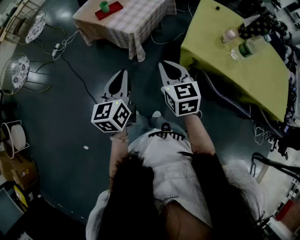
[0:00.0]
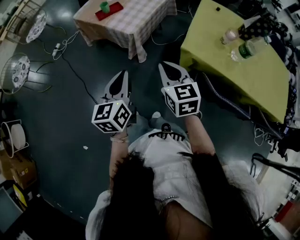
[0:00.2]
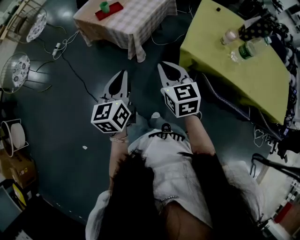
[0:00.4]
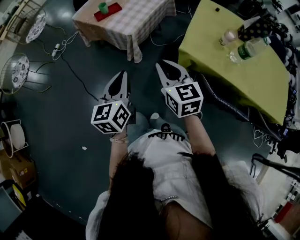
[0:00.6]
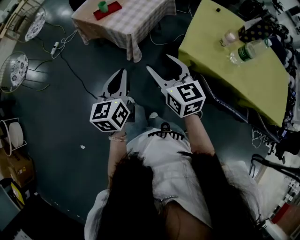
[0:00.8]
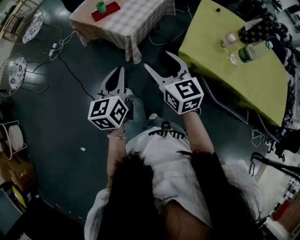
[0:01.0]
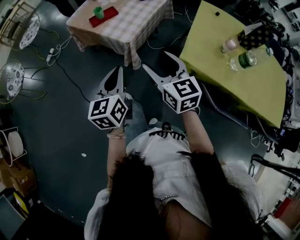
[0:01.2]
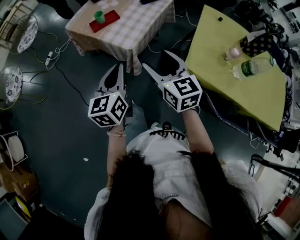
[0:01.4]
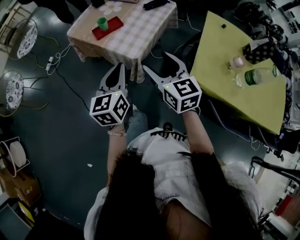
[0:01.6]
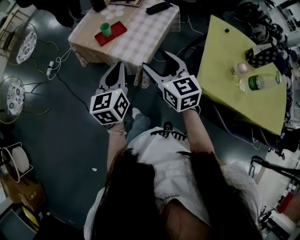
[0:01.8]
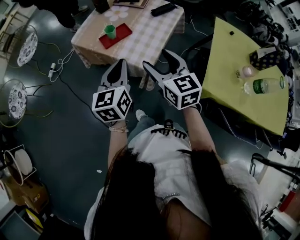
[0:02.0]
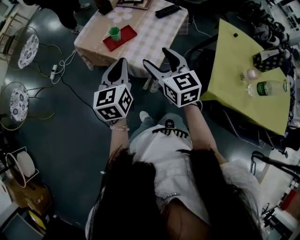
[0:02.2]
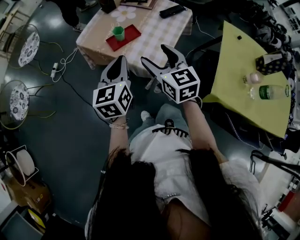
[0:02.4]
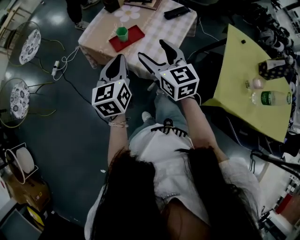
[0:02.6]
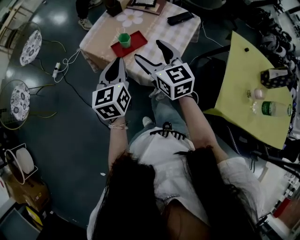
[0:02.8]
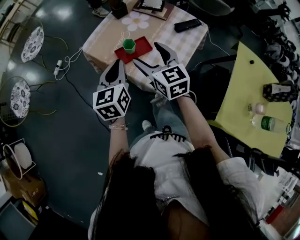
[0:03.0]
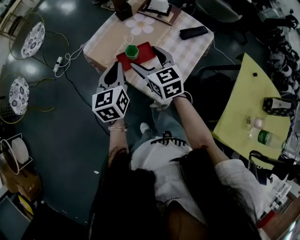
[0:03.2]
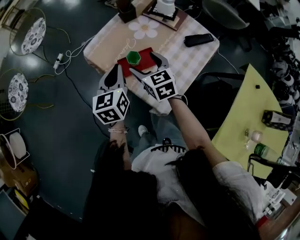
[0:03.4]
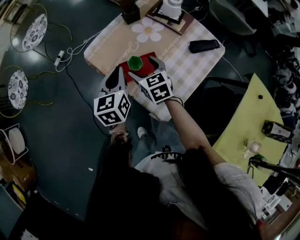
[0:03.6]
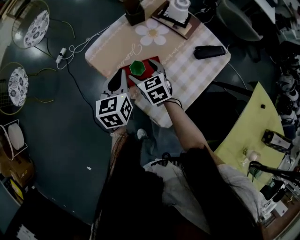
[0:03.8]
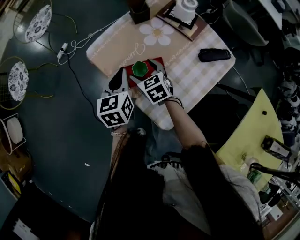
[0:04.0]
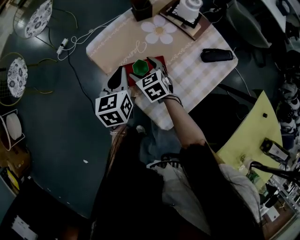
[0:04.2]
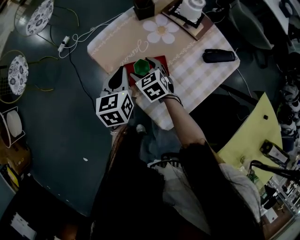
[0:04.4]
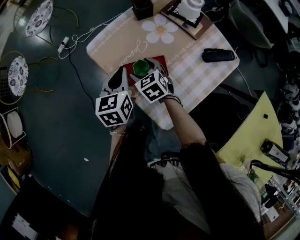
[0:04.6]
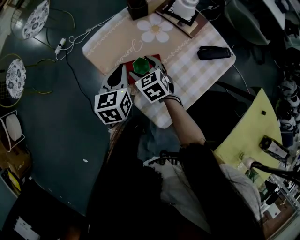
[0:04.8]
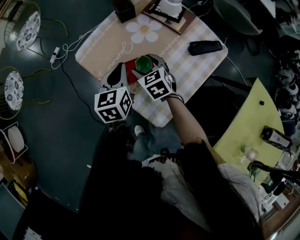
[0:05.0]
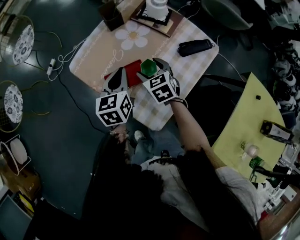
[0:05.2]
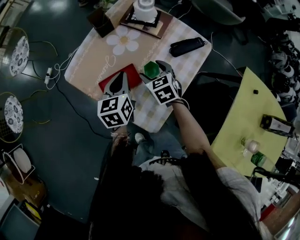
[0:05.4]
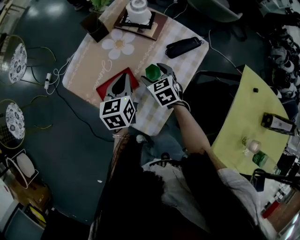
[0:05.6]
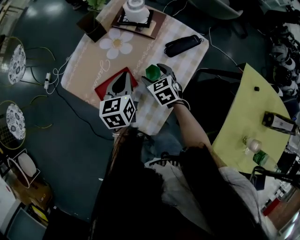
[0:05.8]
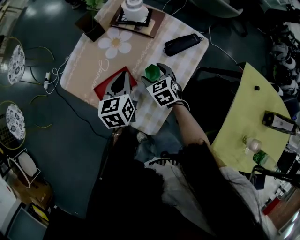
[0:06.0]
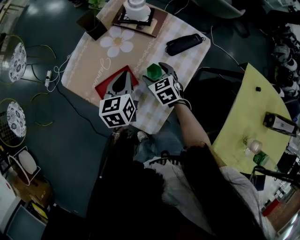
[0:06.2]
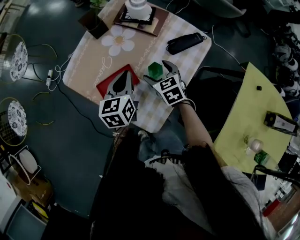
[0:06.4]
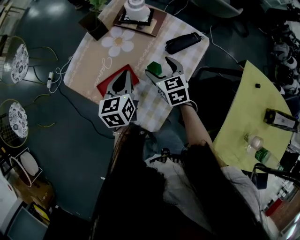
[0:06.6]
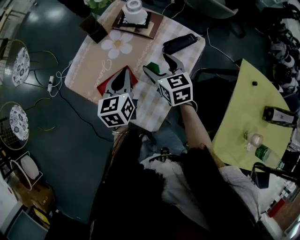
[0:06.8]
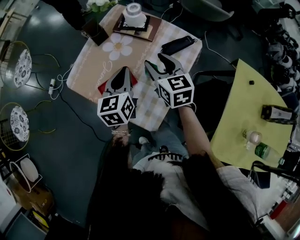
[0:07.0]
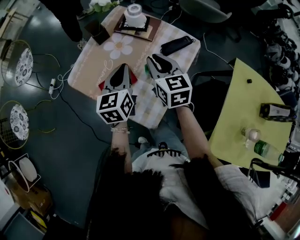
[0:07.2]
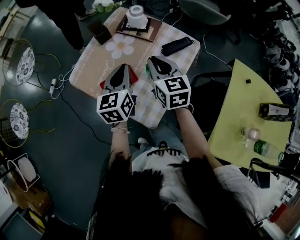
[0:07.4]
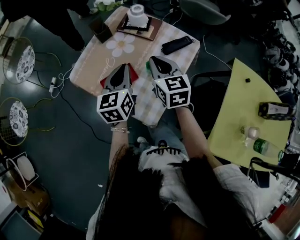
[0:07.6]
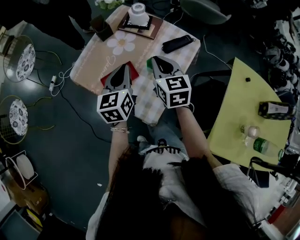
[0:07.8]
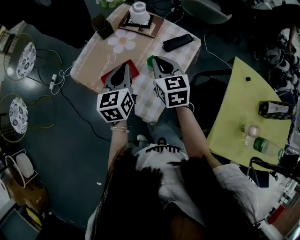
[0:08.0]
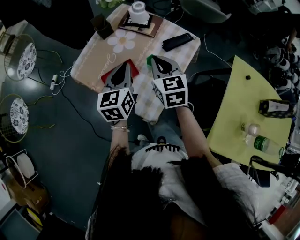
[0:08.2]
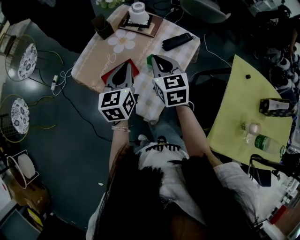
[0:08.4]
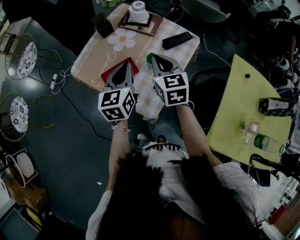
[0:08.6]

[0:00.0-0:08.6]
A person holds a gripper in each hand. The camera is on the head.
0:00.0 to 0:01.4: Both grippers travel together forward, approximately 15 cm. The right gripper opens.
0:01.4 to 0:02.8: Both grippers travel together forward and to the left, roughly 30 cm.
0:02.8 to 0:04.4: The right gripper heads downward and forward, covering roughly 30 cm, and angles its fingers downward, by roughly 30 degrees. The left gripper is displaced forward and downward by some 25 cm, and rotates about 20 degrees.
0:04.4 to 0:05.8: The two grippers go approximately 20 cm to the right. The right gripper rotates some 20 degrees.
0:05.8 to 0:07.2: The right gripper heads upward, covering roughly 20 cm, swivels some 30 degrees, and closes. Meanwhile the left gripper is displaced upward by approximately 10 cm.
0:07.2 to 0:08.6: Both grippers move backward, some 5 cm.

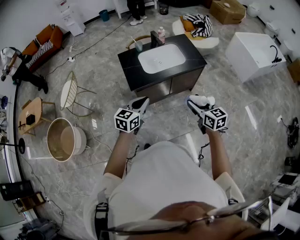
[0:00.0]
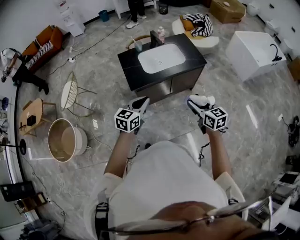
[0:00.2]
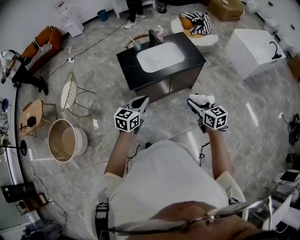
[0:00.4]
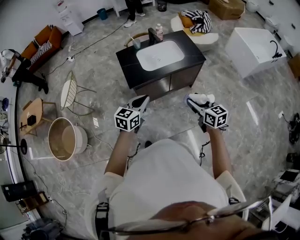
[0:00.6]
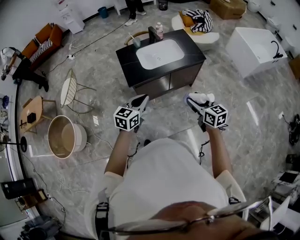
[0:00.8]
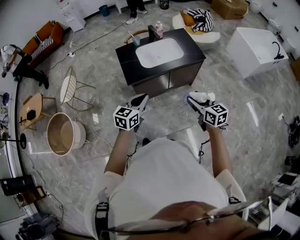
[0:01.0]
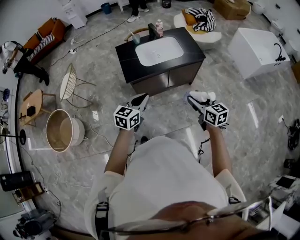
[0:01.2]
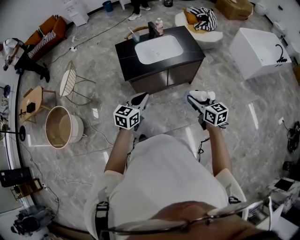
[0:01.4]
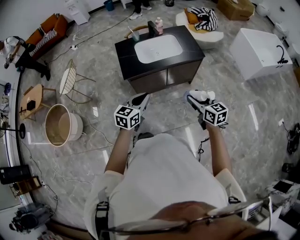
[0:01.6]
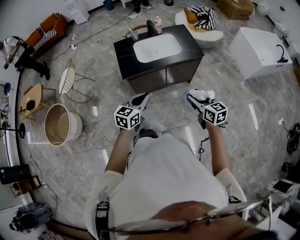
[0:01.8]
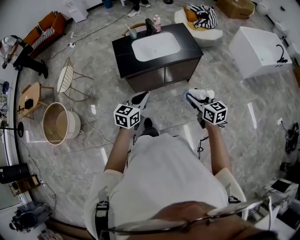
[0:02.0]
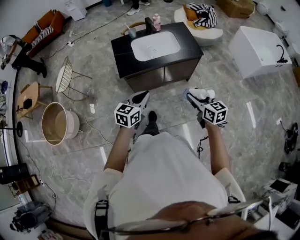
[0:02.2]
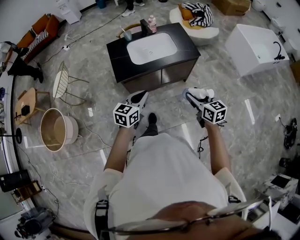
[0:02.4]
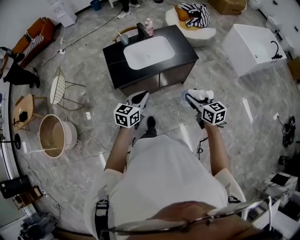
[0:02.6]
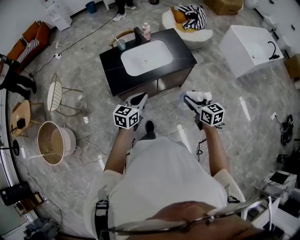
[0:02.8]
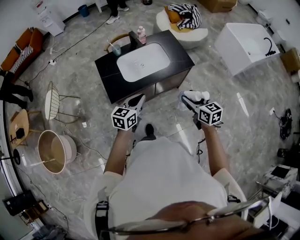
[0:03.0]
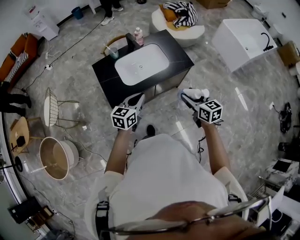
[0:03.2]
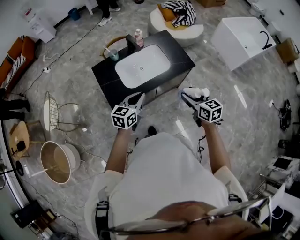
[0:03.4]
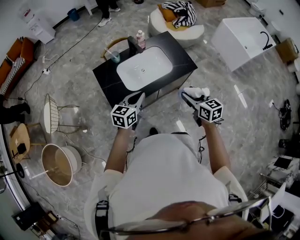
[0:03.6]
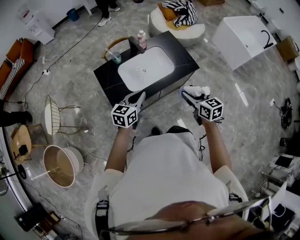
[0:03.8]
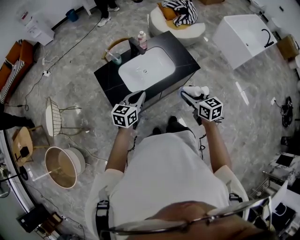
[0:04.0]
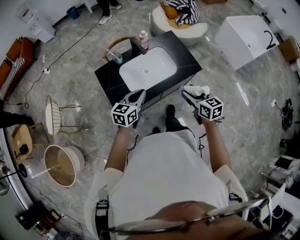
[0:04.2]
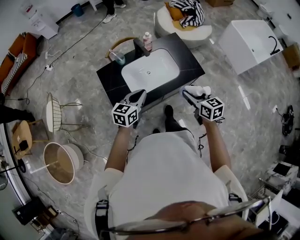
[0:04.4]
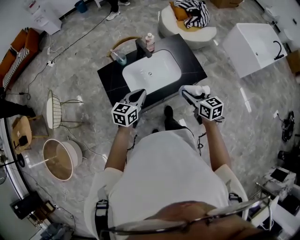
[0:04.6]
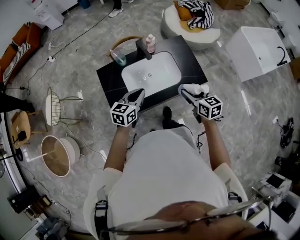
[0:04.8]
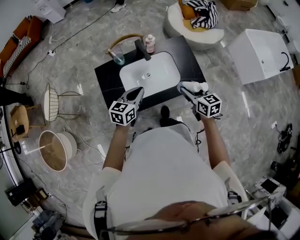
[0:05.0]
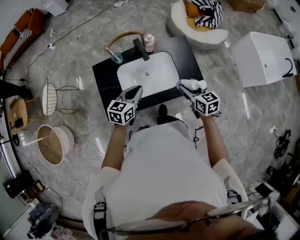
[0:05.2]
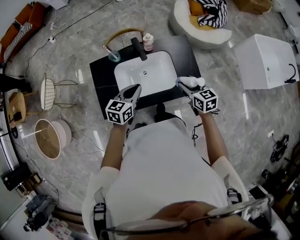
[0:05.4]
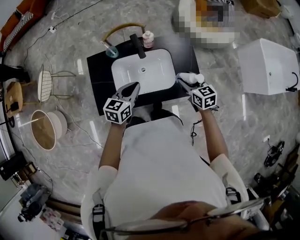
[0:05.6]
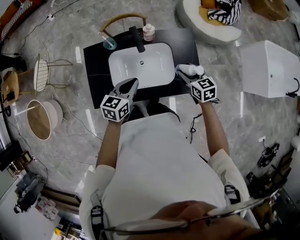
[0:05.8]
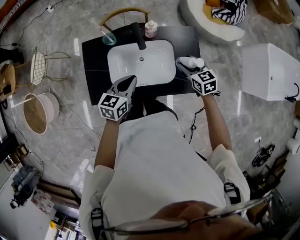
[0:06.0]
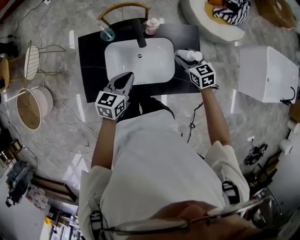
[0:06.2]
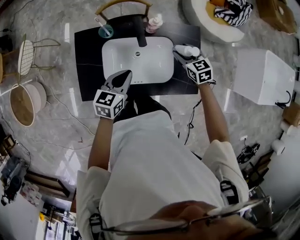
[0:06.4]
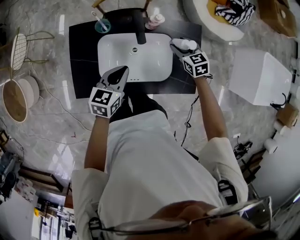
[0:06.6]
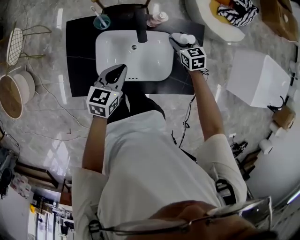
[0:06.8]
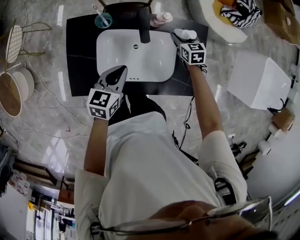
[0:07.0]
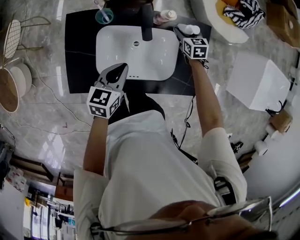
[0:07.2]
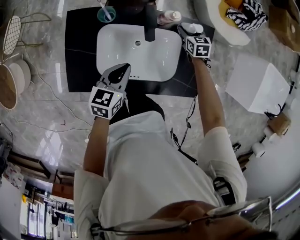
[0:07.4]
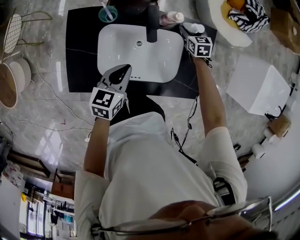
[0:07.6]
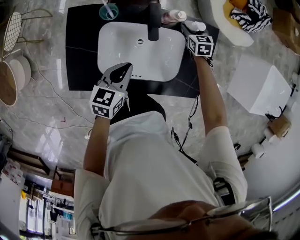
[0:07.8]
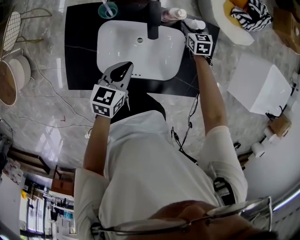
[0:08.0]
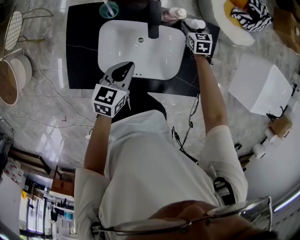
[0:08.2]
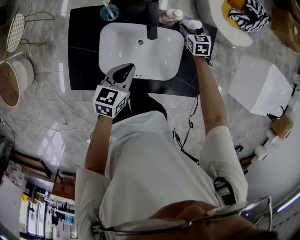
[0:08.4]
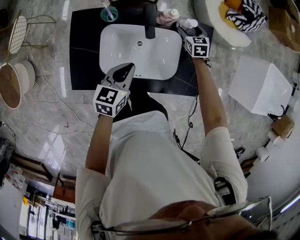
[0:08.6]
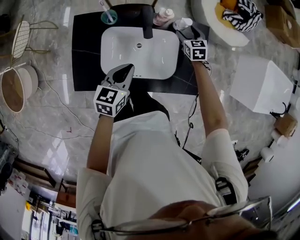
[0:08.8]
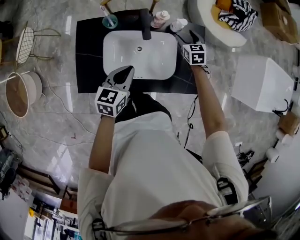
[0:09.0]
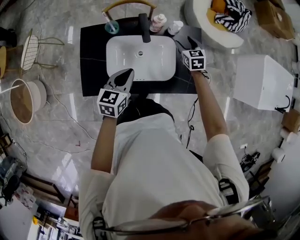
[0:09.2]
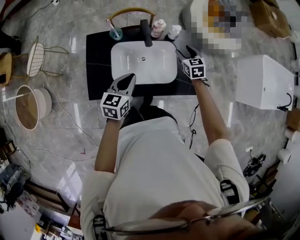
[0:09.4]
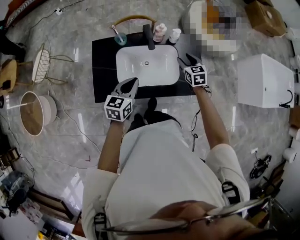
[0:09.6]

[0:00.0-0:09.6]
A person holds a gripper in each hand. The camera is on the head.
0:00.0 to 0:01.6: The grippers both shift to the right by about 10 cm.
0:01.6 to 0:03.2: Both grippers move forward, about 20 cm.
0:03.2 to 0:04.8: Both grippers travel together forward, approximately 20 cm.
0:04.8 to 0:06.4: The left gripper is displaced forward and downward by some 15 cm, and rotates some 20 degrees, while the right gripper shifts some 35 cm forward and downward, and swivels approximately 30 degrees.
0:06.4 to 0:08.0: The left gripper heads downward, covering roughly 10 cm; the right gripper travels downward and forward by some 20 cm.
0:08.0 to 0:09.6: The right gripper heads backward and upward, covering roughly 25 cm. Meanwhile the left gripper heads upward and backward, covering approximately 15 cm.

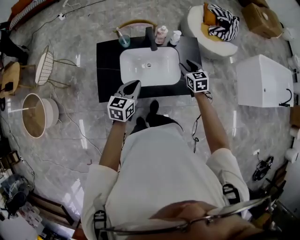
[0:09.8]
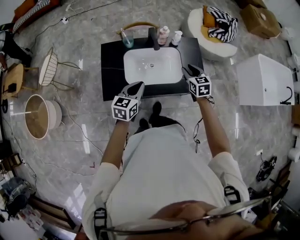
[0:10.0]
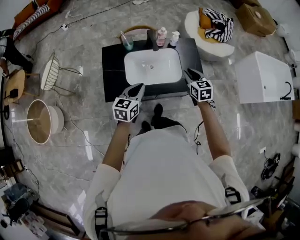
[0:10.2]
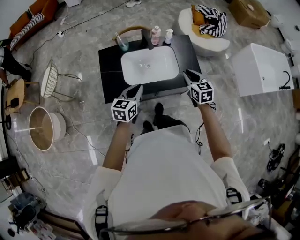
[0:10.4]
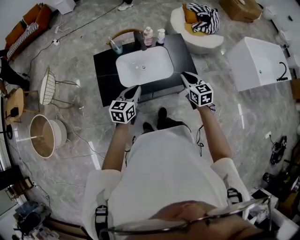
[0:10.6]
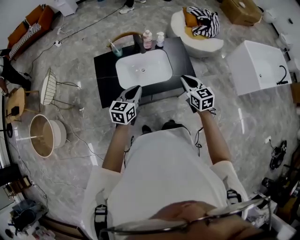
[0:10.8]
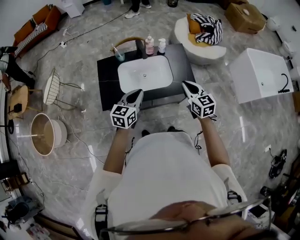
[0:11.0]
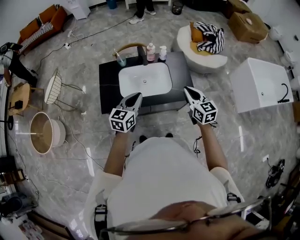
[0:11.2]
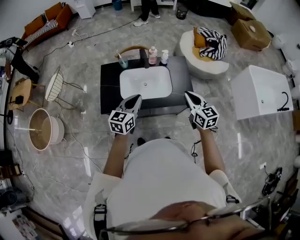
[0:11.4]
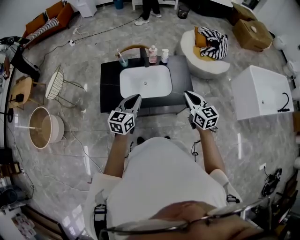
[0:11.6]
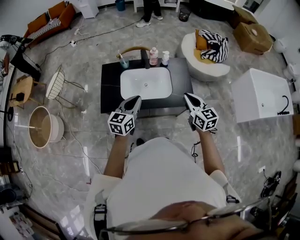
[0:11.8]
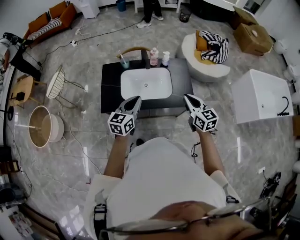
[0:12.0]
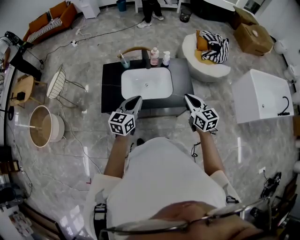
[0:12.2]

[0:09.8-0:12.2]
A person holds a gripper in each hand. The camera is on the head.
0:09.8 to 0:11.0: The right gripper moves backward and upward, roughly 20 cm, and closes its fingers, while the left gripper heads backward, upward and to the right, covering roughly 10 cm.
0:11.0 to 0:12.2: The grippers move only a little.

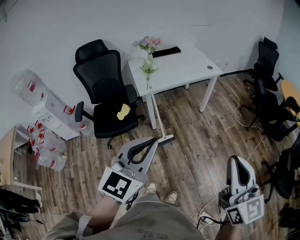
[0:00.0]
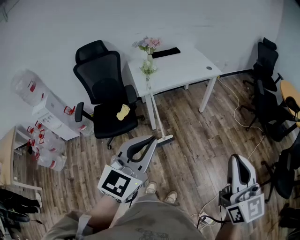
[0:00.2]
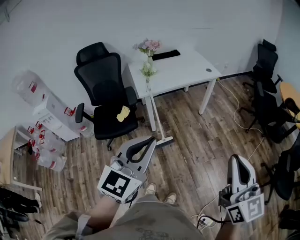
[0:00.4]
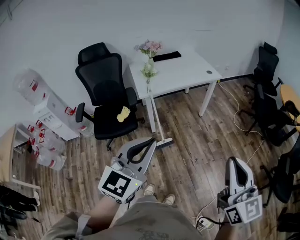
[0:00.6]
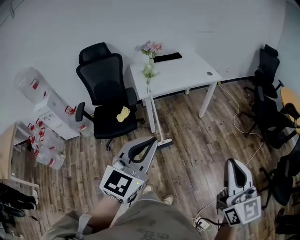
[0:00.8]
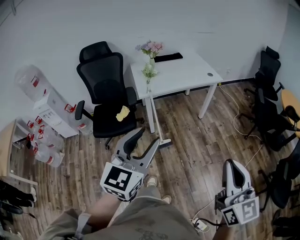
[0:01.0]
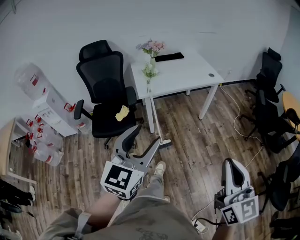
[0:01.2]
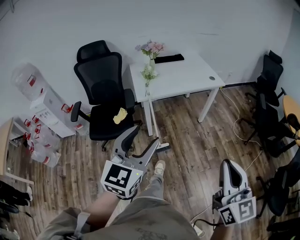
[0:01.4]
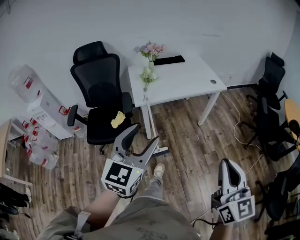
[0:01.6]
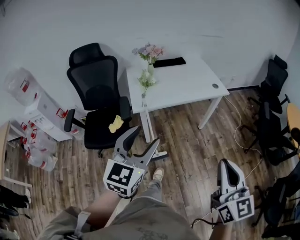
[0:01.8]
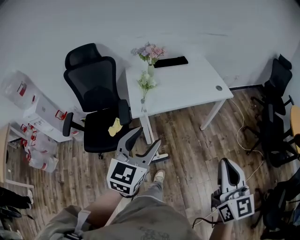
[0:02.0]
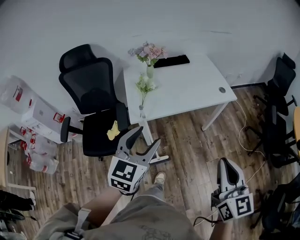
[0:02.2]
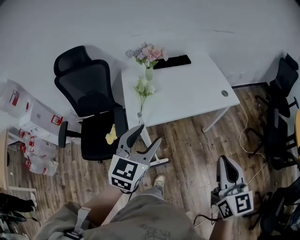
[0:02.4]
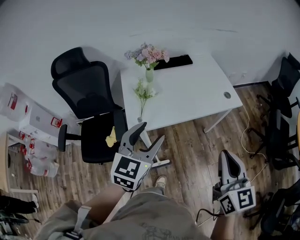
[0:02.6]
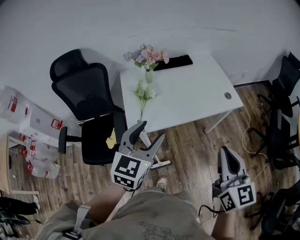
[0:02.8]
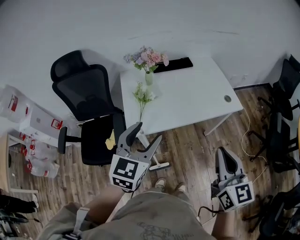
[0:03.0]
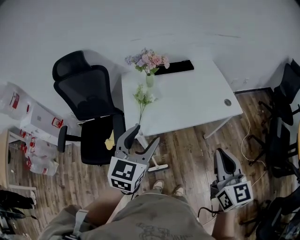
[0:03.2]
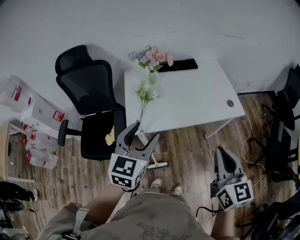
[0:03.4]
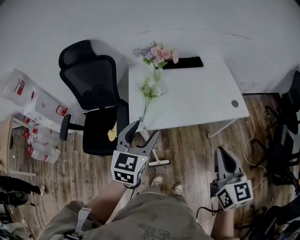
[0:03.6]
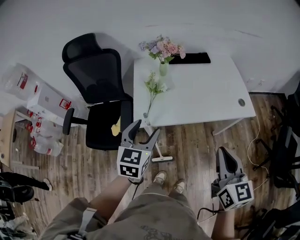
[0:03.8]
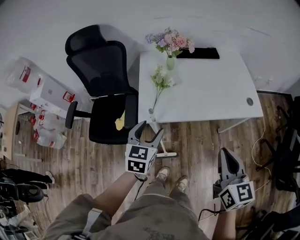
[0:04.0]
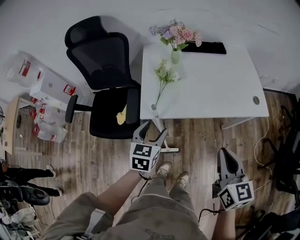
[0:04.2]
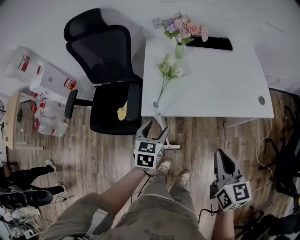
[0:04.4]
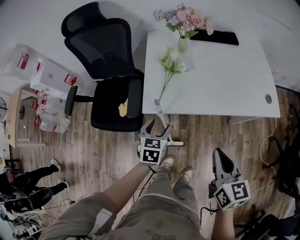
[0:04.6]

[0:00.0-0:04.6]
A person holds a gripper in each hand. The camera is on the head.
0:00.0 to 0:01.6: Both grippers move forward, about 15 cm. The left gripper opens its fingers.
0:01.6 to 0:03.0: The grippers both shift forward by roughly 35 cm.
0:03.0 to 0:04.6: The left gripper goes roughly 30 cm downward, and swivels about 40 degrees. Meanwhile the right gripper travels downward by some 15 cm, and rotates about 30 degrees.
